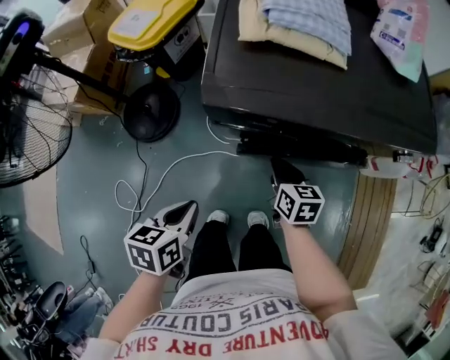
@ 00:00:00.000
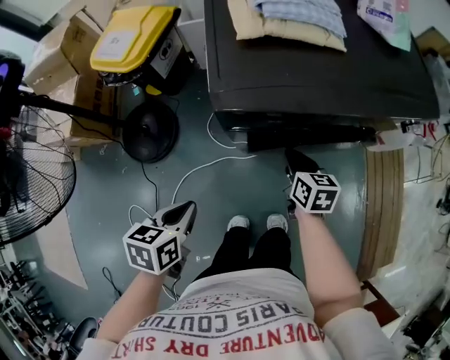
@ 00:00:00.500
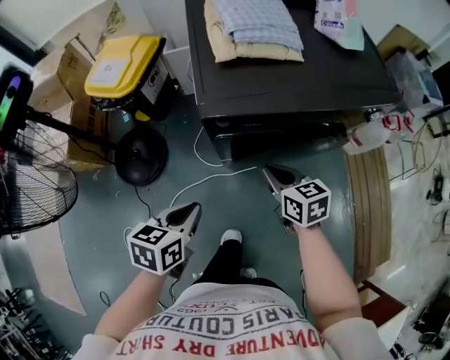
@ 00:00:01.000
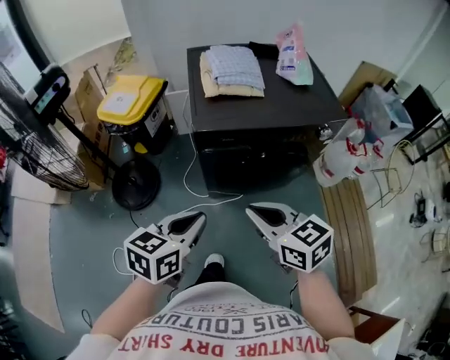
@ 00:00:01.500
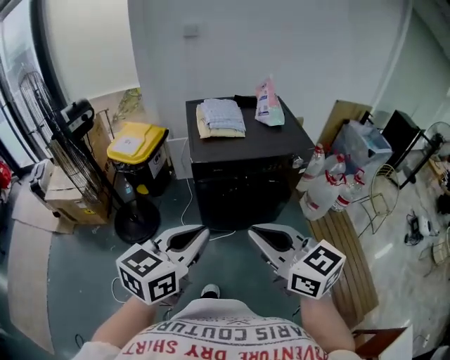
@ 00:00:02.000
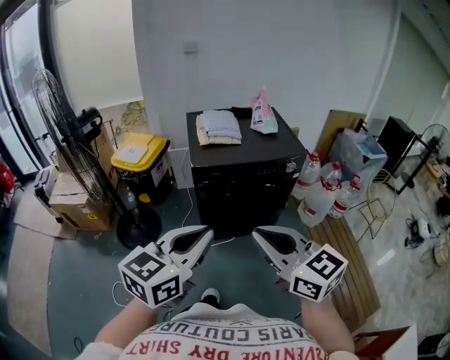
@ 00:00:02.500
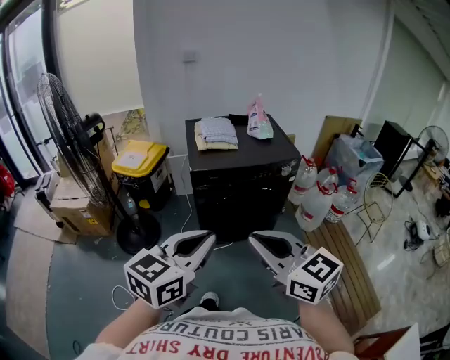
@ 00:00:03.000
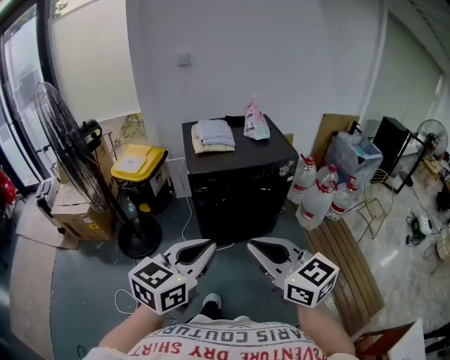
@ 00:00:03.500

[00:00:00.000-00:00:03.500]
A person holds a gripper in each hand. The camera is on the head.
00:00:00.000 to 00:00:02.000: The two grippers go some 50 cm upward and backward. The right gripper changes its angle by approximately 40 degrees. Meanwhile the left gripper tilts its fingers about 40 degrees upward.
00:00:02.000 to 00:00:03.500: The two grippers go some 10 cm backward.

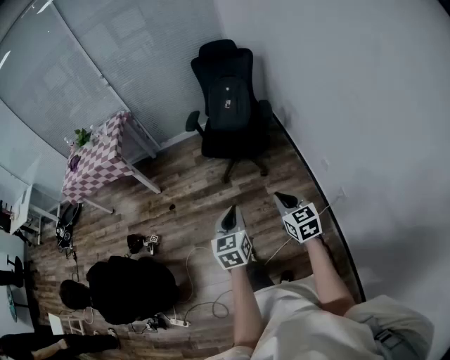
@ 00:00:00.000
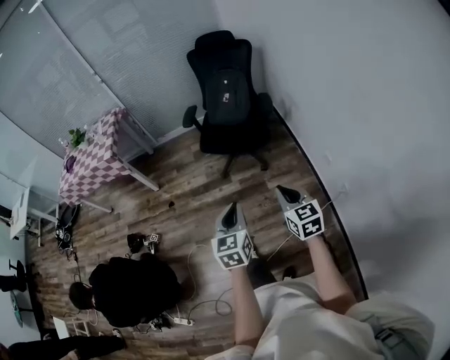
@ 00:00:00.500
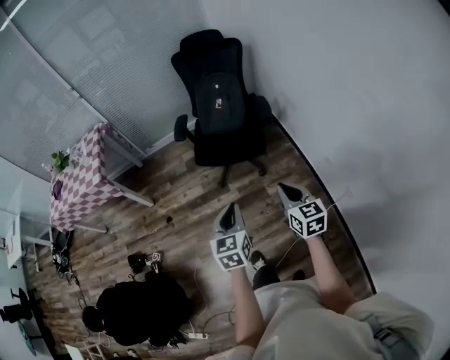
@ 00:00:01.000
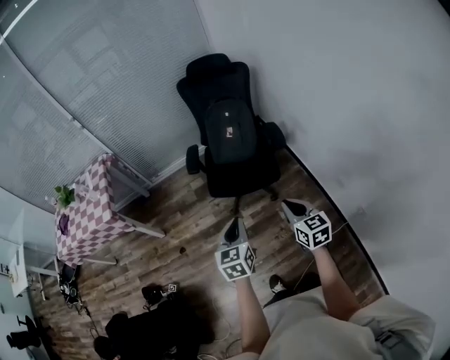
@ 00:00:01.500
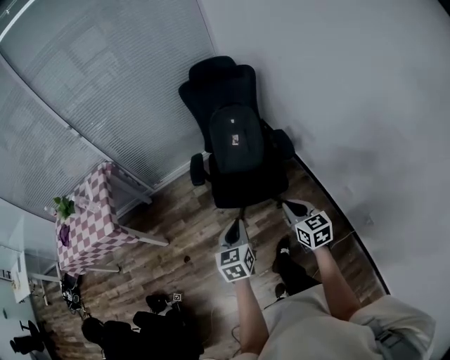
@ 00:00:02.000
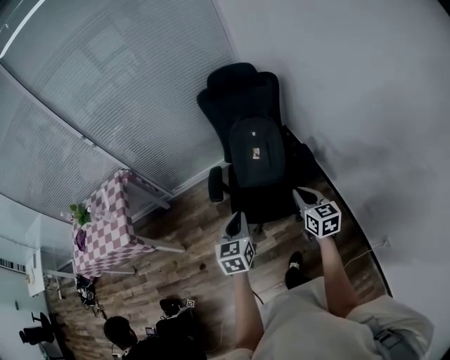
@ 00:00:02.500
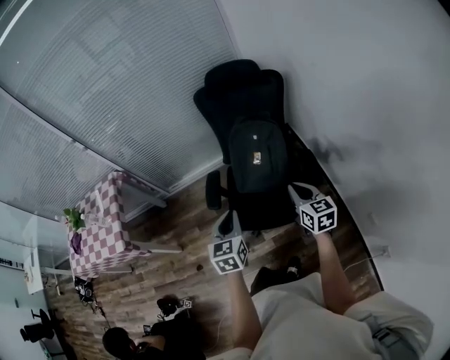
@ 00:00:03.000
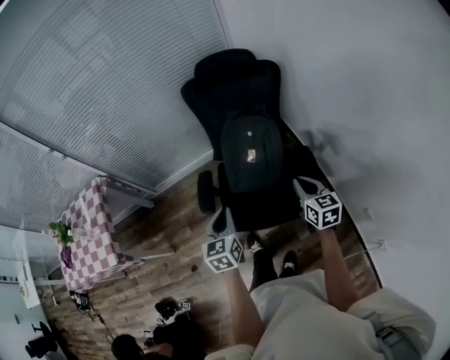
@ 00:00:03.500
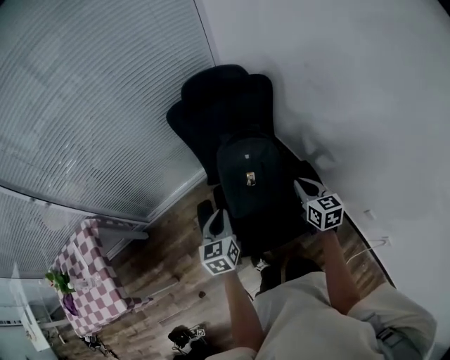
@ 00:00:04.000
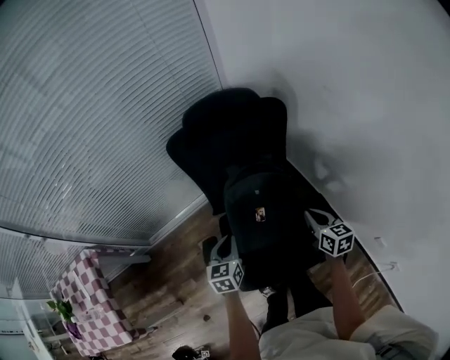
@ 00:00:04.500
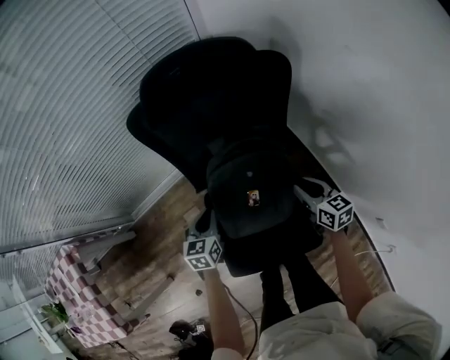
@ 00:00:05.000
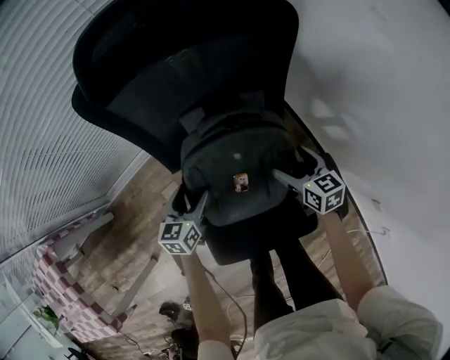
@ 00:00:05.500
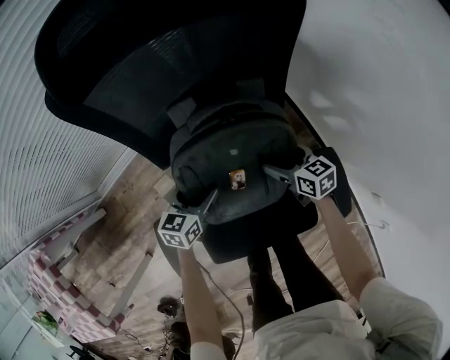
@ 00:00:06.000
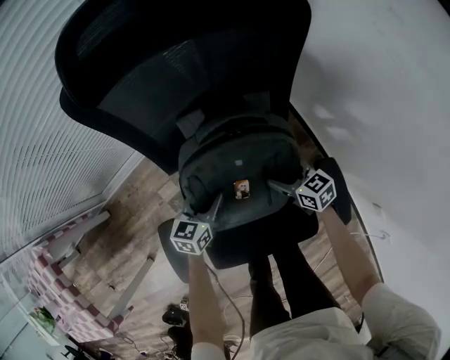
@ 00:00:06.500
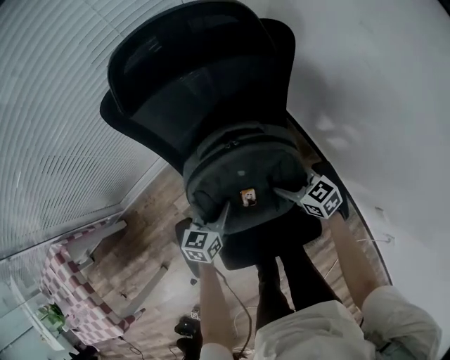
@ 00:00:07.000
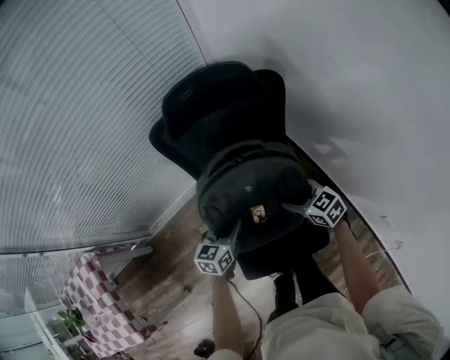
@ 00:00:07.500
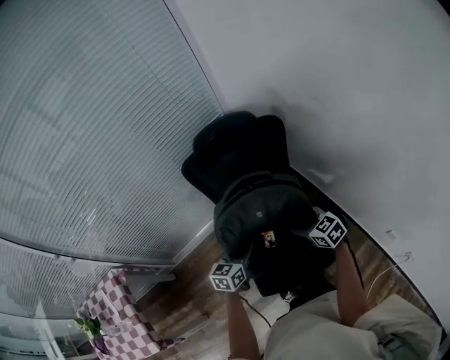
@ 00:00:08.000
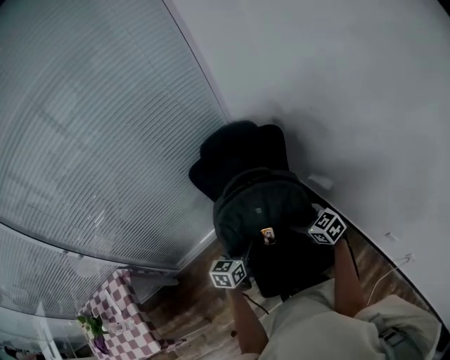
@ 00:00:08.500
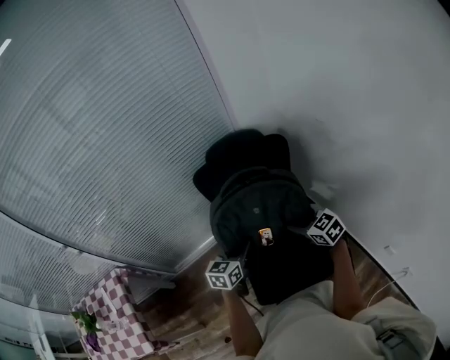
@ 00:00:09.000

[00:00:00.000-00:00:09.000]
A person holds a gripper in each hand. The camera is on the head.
00:00:00.000 to 00:00:02.000: Both grippers are carried forward, approximately 40 cm.
00:00:02.000 to 00:00:04.500: The pair of grippers is taken forward, approximately 50 cm. The right gripper turns by roughly 20 degrees.
00:00:04.500 to 00:00:07.000: Both grippers move downward and forward, roughly 20 cm. The right gripper rotates roughly 30 degrees, and opens its fingers; the left gripper opens.
00:00:07.000 to 00:00:09.000: The grippers both shift upward by approximately 30 cm.

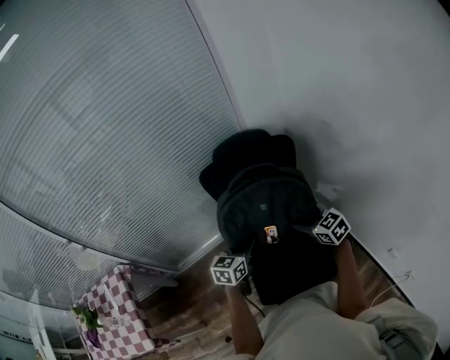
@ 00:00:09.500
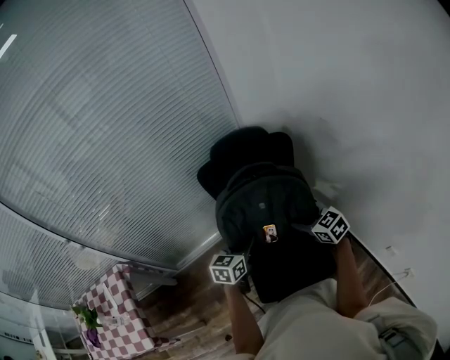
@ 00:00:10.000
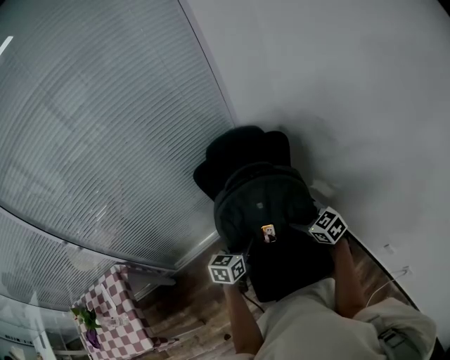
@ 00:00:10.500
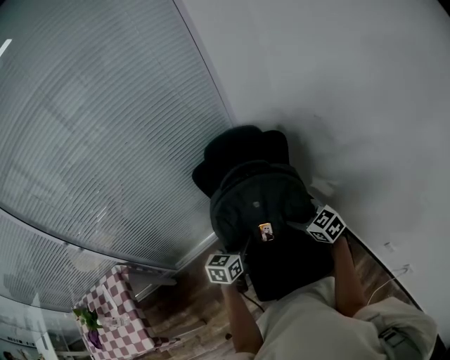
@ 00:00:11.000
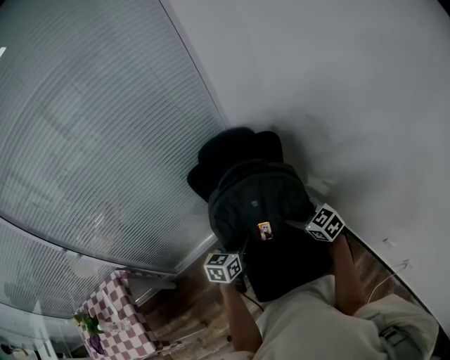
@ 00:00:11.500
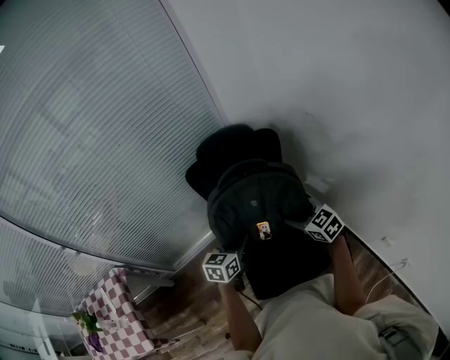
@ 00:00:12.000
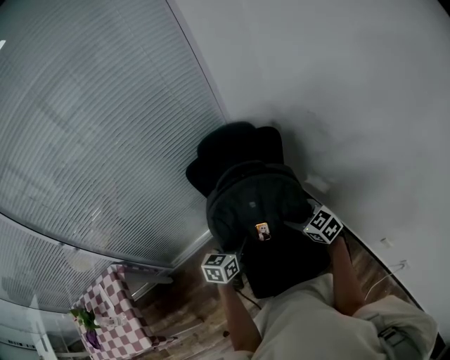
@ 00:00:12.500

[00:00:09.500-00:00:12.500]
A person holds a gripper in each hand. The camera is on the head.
00:00:09.500 to 00:00:12.500: The grippers move only a little.

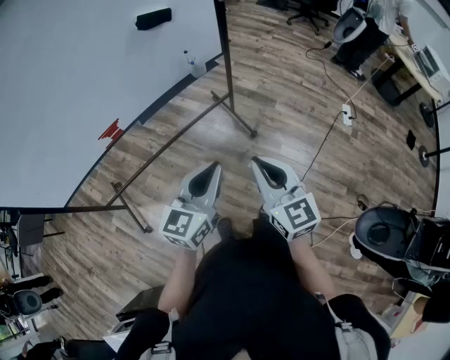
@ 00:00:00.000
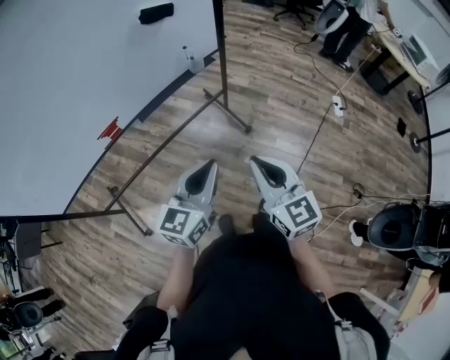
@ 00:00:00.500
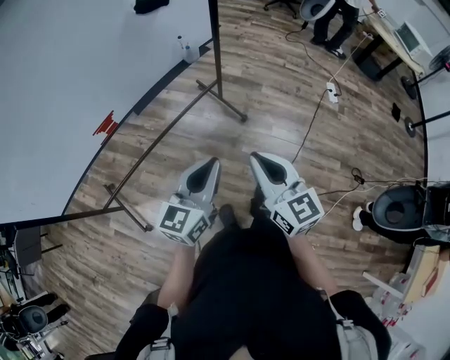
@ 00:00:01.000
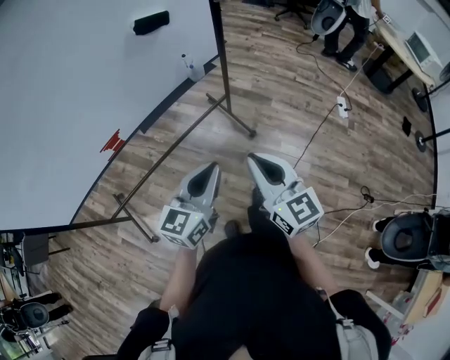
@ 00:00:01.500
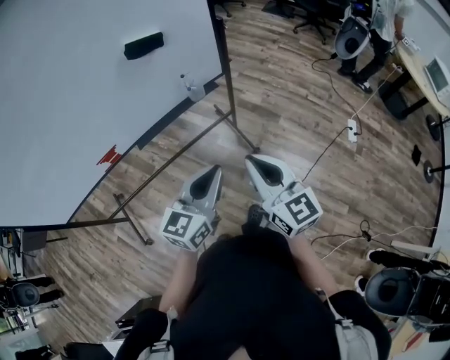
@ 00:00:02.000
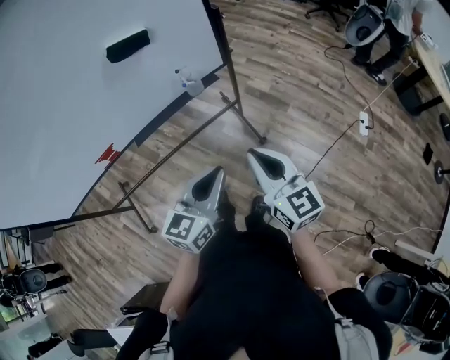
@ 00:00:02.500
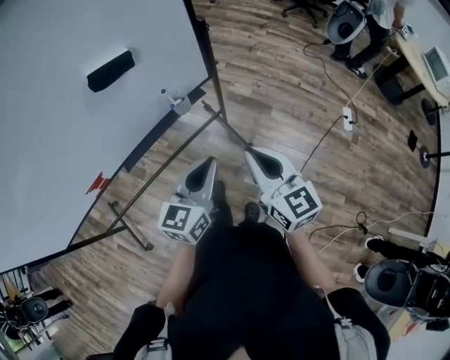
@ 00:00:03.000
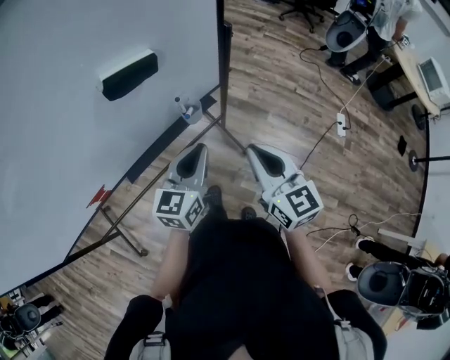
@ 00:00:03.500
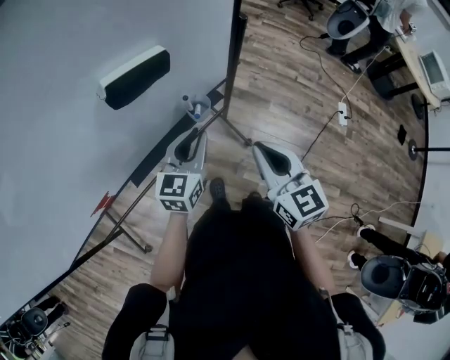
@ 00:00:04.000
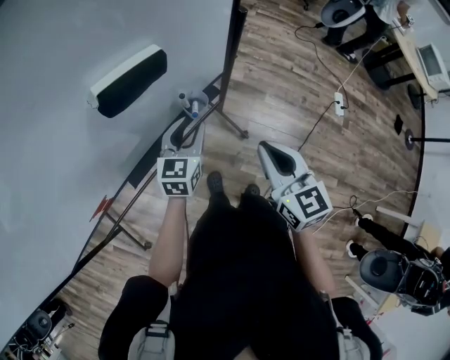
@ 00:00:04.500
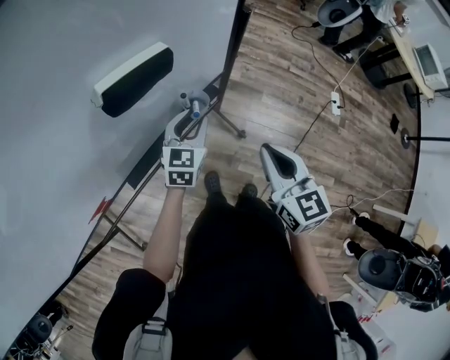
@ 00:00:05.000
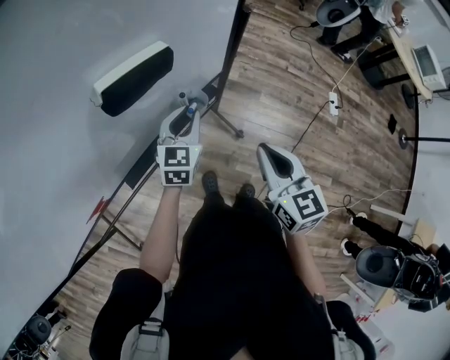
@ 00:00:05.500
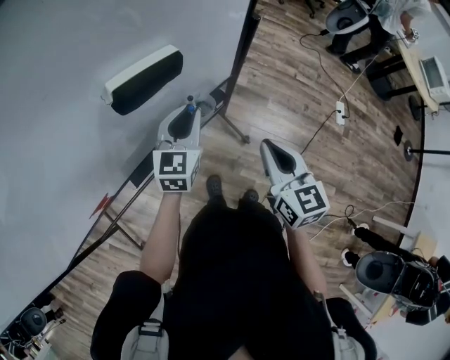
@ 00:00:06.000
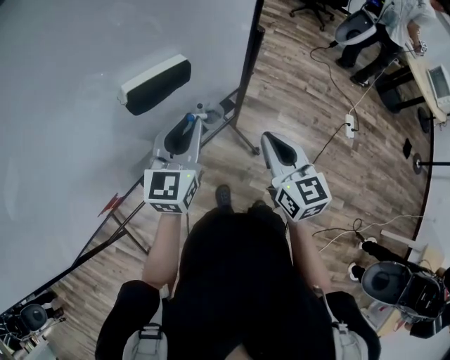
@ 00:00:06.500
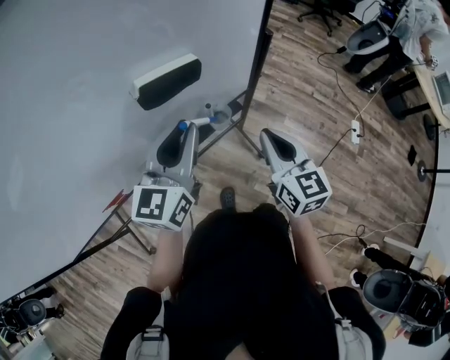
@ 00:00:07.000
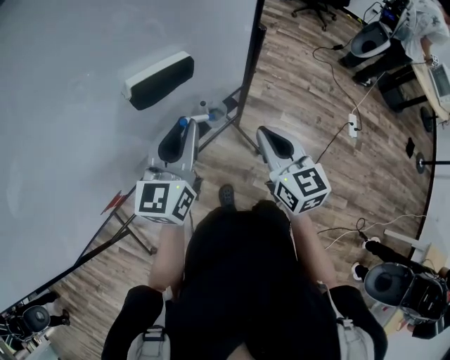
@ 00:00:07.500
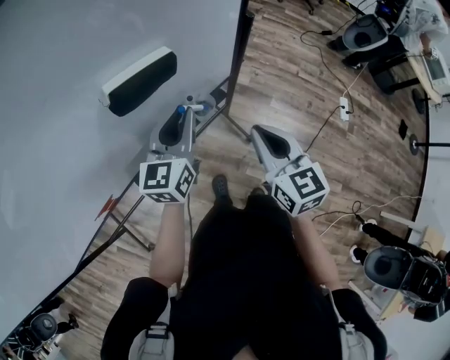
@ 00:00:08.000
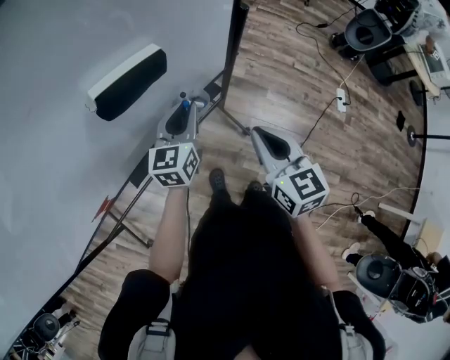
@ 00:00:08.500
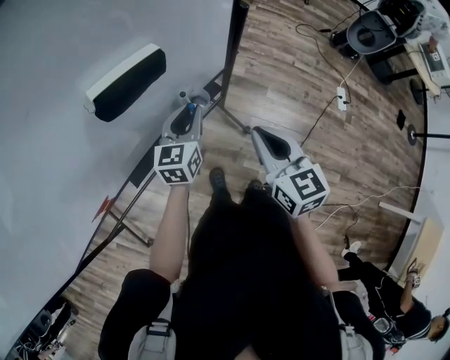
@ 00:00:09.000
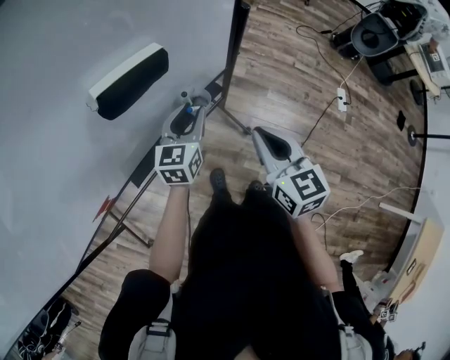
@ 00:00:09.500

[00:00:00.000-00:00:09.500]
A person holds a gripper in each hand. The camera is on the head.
00:00:00.000 to 00:00:02.000: The two grippers go roughly 10 cm forward.
00:00:02.000 to 00:00:04.000: The two grippers go approximately 30 cm forward.
00:00:04.000 to 00:00:05.500: The left gripper moves forward, about 5 cm.
00:00:05.500 to 00:00:07.500: The left gripper is displaced upward by roughly 15 cm, and changes its angle by approximately 20 degrees. The right gripper is displaced forward by roughly 5 cm.
00:00:07.500 to 00:00:09.500: The left gripper is displaced downward by approximately 15 cm.

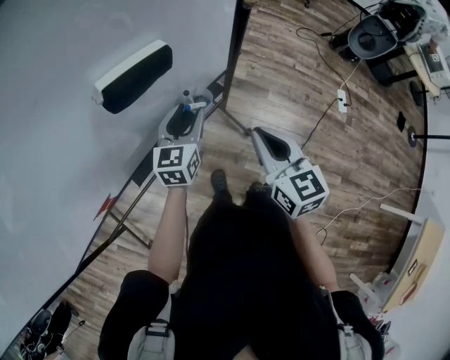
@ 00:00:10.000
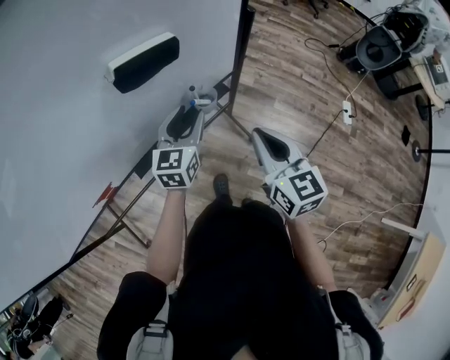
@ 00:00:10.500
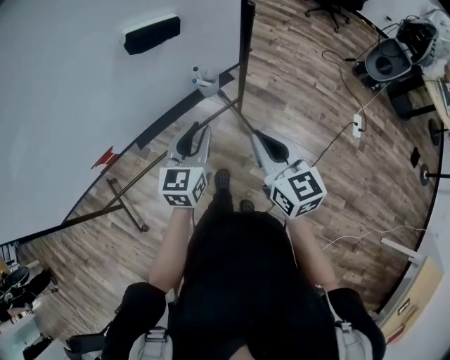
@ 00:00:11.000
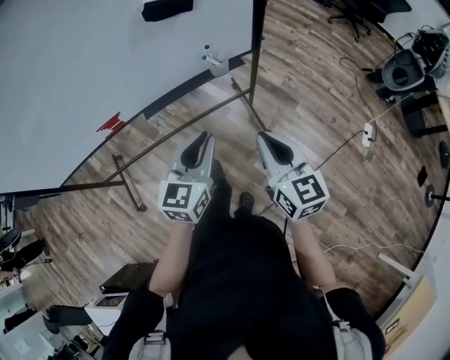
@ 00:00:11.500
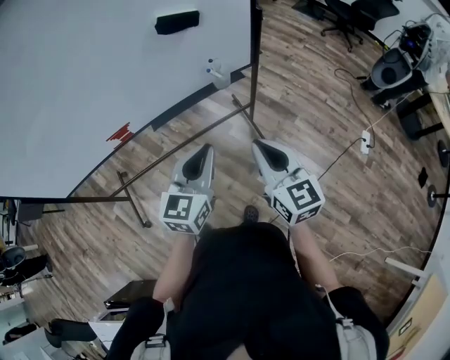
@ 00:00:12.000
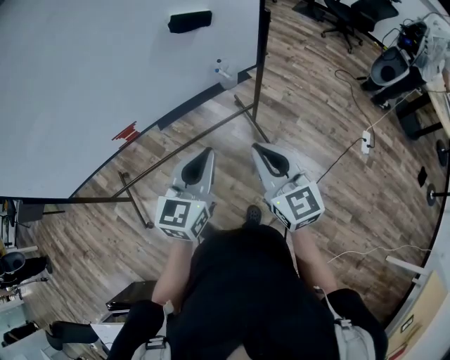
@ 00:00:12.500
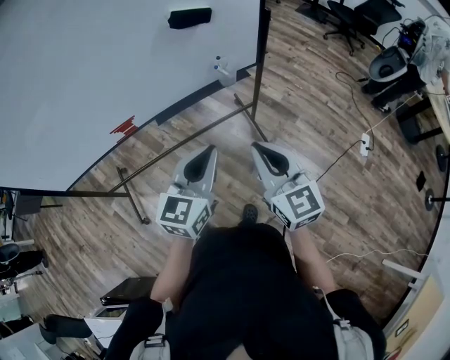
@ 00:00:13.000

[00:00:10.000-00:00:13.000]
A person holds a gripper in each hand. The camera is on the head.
00:00:10.000 to 00:00:11.500: The left gripper goes some 30 cm backward, and closes, while the right gripper goes about 20 cm backward.
00:00:11.500 to 00:00:13.000: The left gripper is displaced backward and upward by about 10 cm. The right gripper is displaced to the left and backward by some 10 cm.
